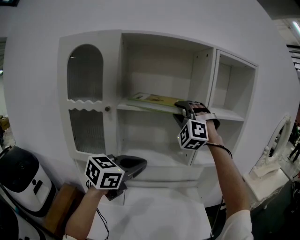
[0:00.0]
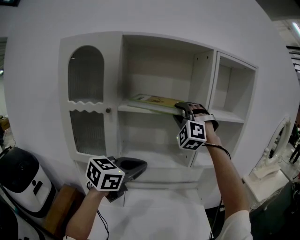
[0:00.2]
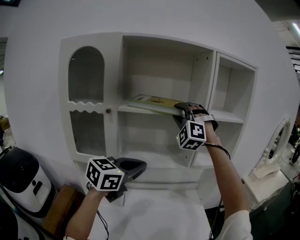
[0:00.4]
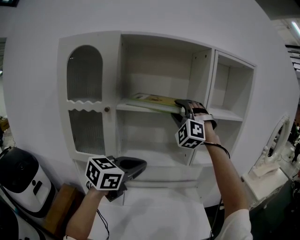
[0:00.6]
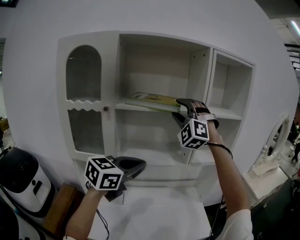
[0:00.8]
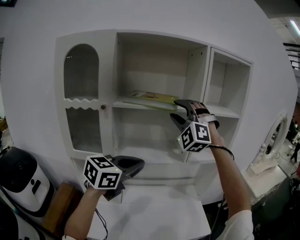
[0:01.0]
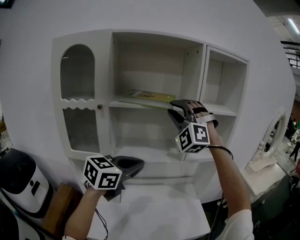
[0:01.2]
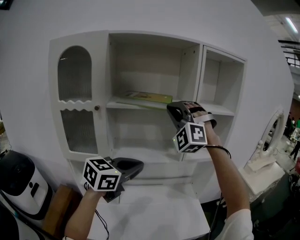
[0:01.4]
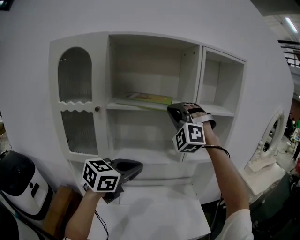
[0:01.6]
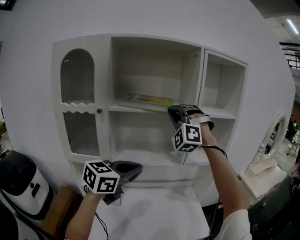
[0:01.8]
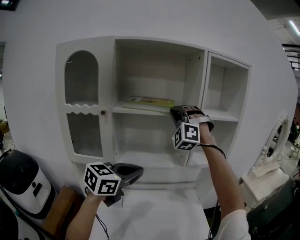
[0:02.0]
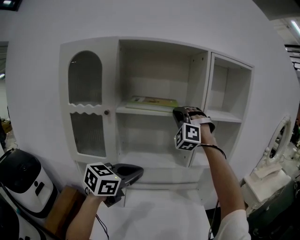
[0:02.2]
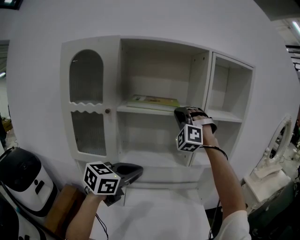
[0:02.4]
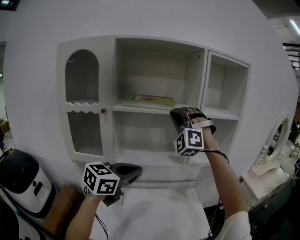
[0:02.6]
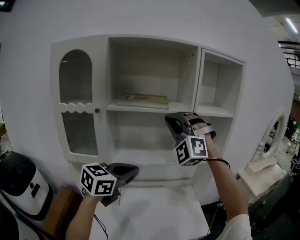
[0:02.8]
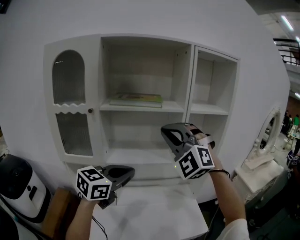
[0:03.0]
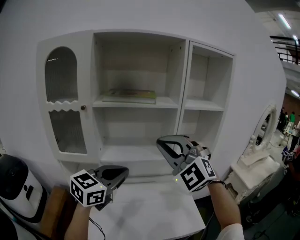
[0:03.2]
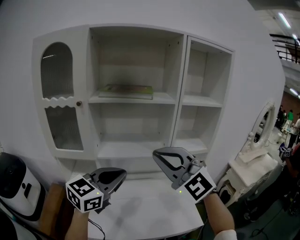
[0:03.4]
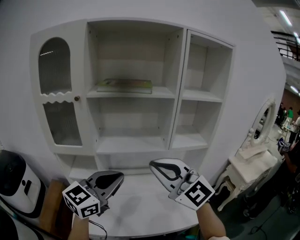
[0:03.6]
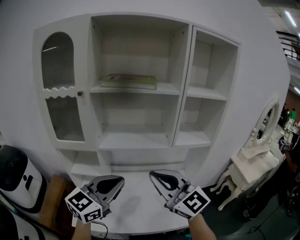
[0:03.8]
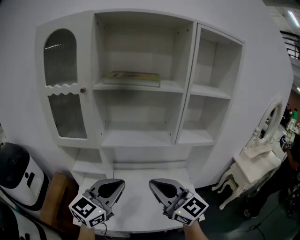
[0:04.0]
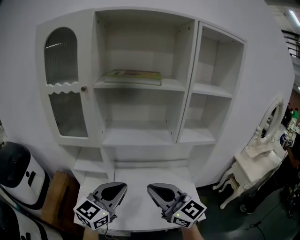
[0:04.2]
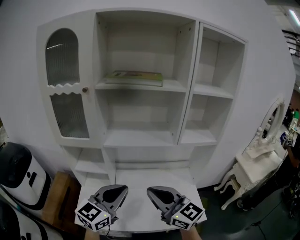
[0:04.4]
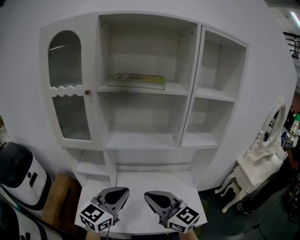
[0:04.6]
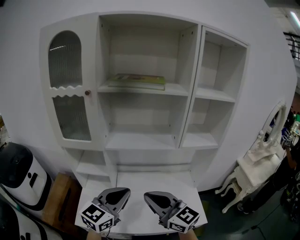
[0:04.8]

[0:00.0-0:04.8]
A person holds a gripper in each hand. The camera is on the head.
0:03.2 to 0:04.8: The left gripper goes about 10 cm downward.

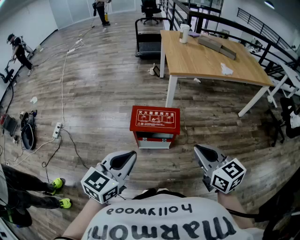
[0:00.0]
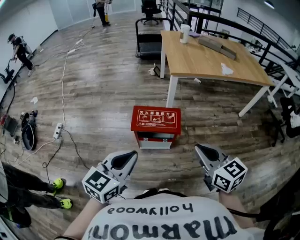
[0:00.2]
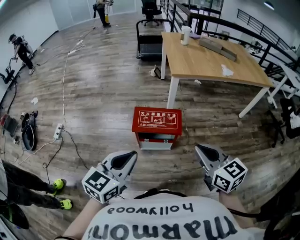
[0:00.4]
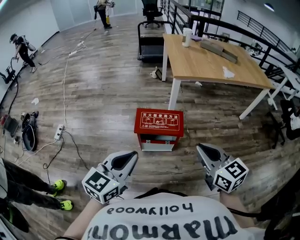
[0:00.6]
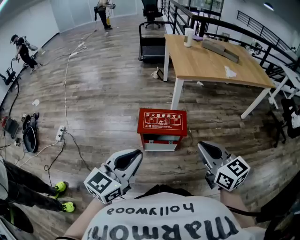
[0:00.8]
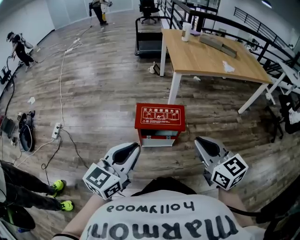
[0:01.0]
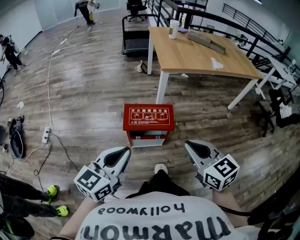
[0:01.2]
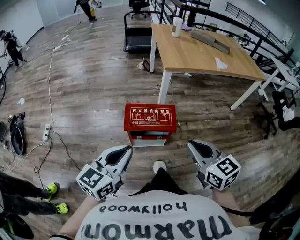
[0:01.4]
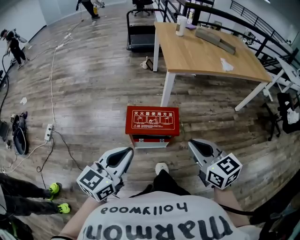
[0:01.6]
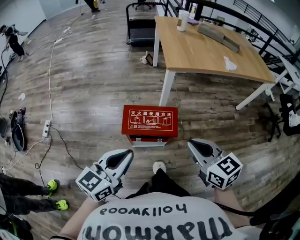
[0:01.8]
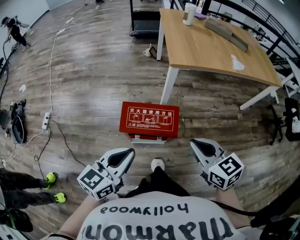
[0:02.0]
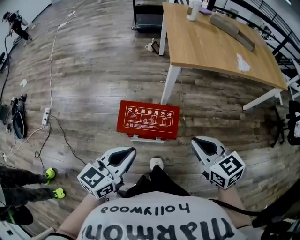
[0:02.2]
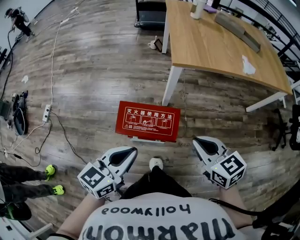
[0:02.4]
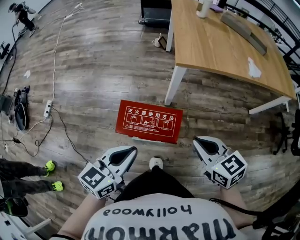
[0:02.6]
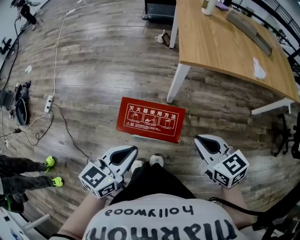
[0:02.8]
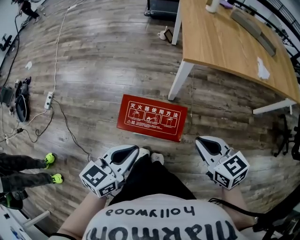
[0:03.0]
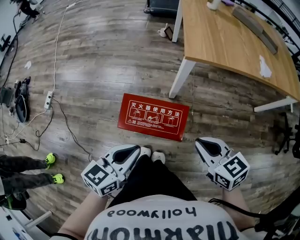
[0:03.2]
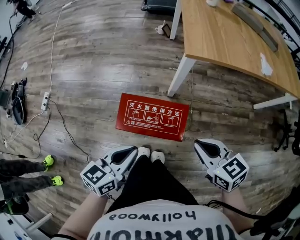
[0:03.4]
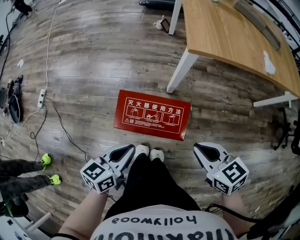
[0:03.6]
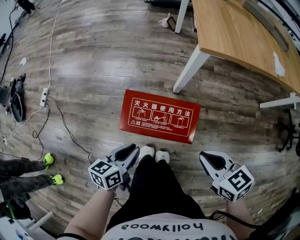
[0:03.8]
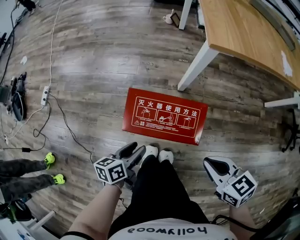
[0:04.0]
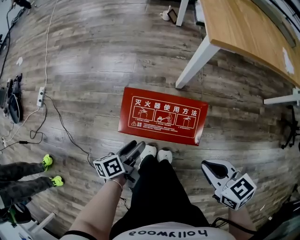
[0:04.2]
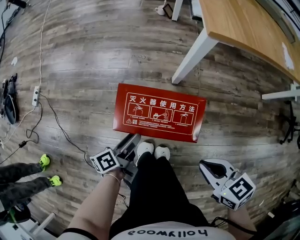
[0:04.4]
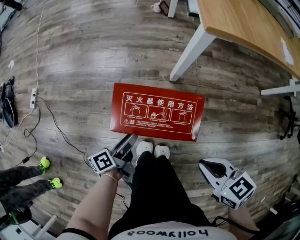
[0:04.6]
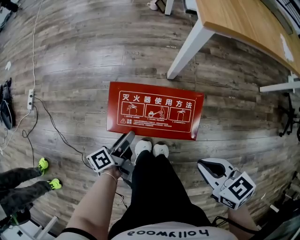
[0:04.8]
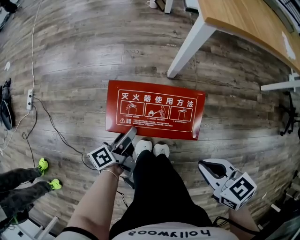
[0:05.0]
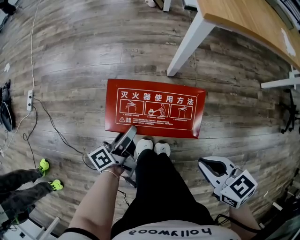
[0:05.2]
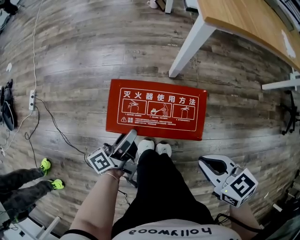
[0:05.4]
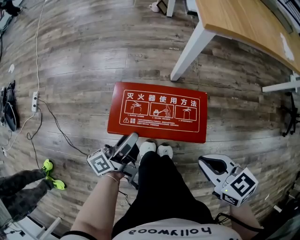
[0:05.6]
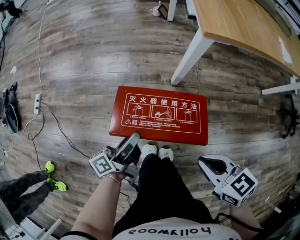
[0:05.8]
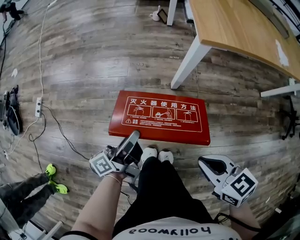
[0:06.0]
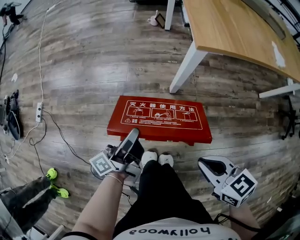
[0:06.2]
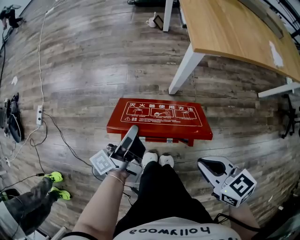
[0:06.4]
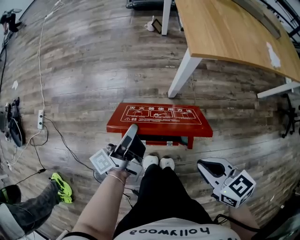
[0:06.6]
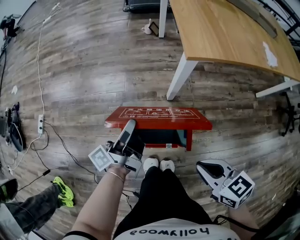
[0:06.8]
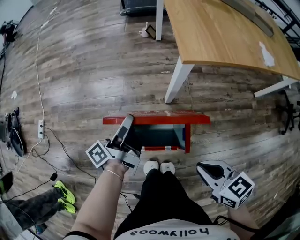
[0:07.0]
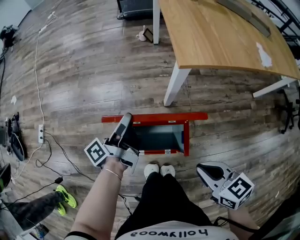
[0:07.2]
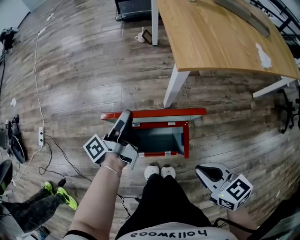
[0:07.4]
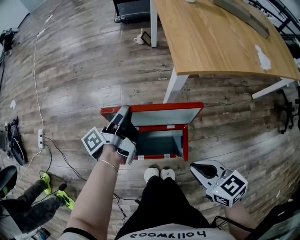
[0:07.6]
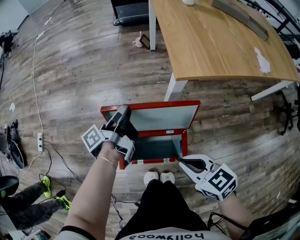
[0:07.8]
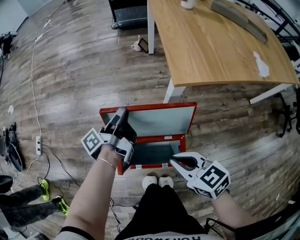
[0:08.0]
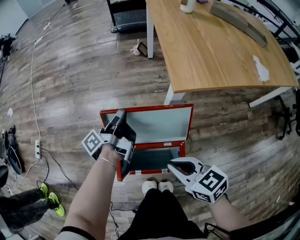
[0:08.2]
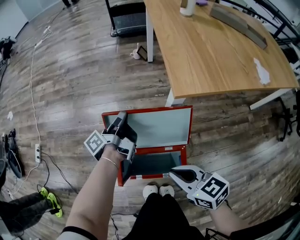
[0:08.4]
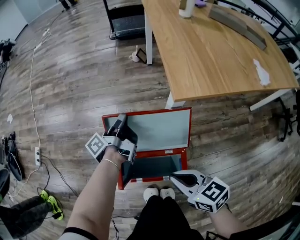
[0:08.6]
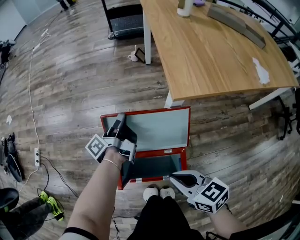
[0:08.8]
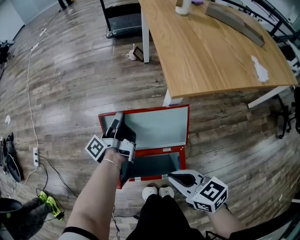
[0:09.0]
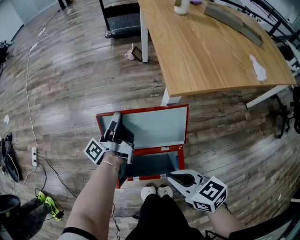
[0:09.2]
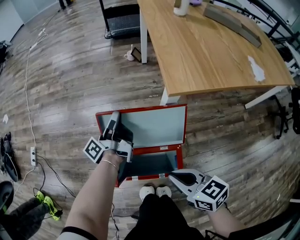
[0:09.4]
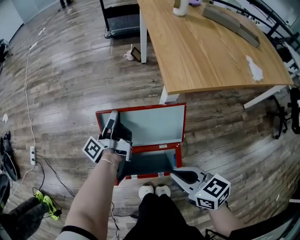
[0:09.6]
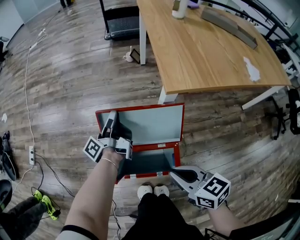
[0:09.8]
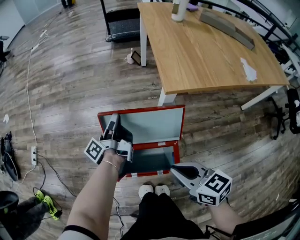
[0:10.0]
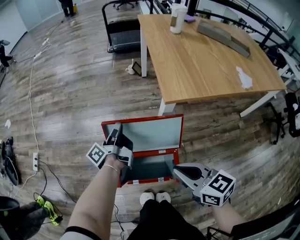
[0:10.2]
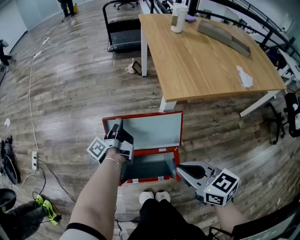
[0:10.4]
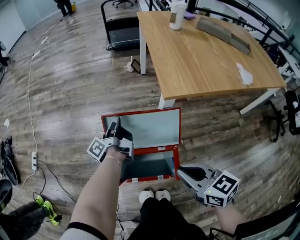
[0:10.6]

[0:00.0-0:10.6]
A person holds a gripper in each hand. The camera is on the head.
0:00.0 to 0:01.6: The two grippers go some 5 cm forward.
0:01.6 to 0:03.0: Both grippers travel together forward, downward and to the right, about 20 cm. The right gripper rotates some 20 degrees.
0:03.0 to 0:04.6: The left gripper is displaced downward by some 30 cm, rolls counterclockwise, seen from behind, by roughly 70 degrees, and opens up. The right gripper goes roughly 15 cm downward.
0:04.6 to 0:06.0: The left gripper travels upward by about 10 cm, rotates approximately 30 degrees, and closes.
0:06.0 to 0:07.6: The left gripper travels forward by roughly 20 cm. The right gripper goes roughly 5 cm forward.
0:07.6 to 0:09.0: Both grippers travel together forward, roughly 10 cm. The left gripper closes up.
0:09.0 to 0:10.6: The right gripper goes some 5 cm upward.

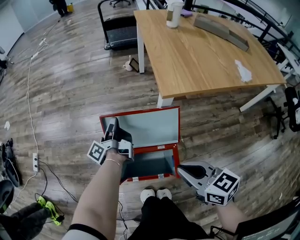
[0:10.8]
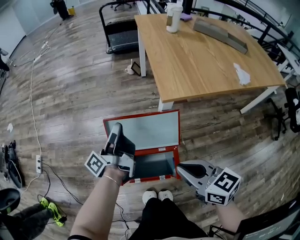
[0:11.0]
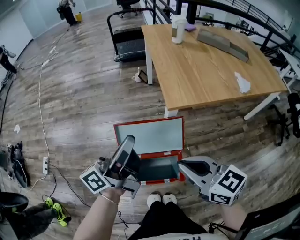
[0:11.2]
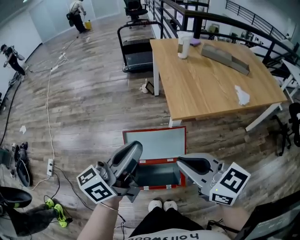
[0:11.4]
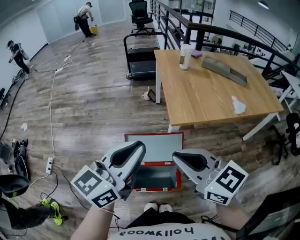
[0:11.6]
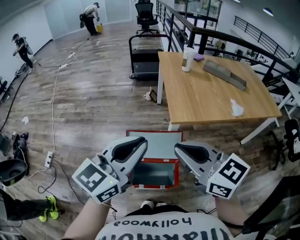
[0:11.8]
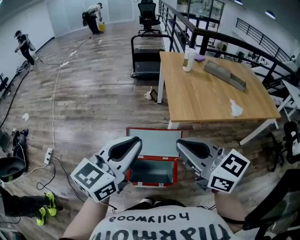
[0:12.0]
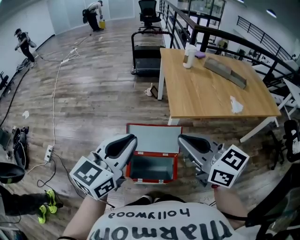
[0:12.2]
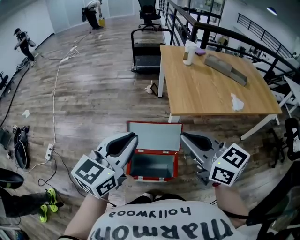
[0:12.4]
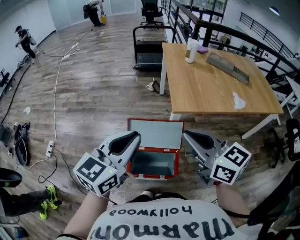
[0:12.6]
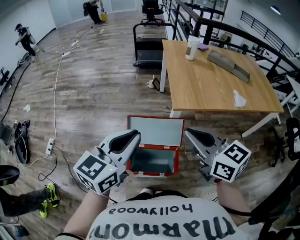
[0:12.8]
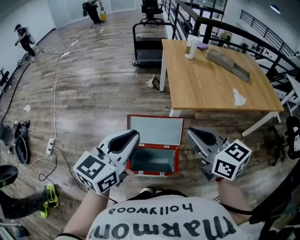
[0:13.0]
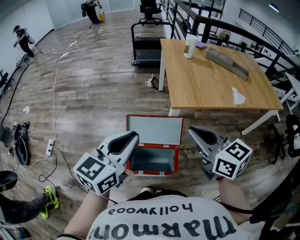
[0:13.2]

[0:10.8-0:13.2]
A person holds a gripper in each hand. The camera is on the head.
0:10.8 to 0:12.0: The left gripper moves upward and backward, approximately 40 cm, and rotates around the line of its fingers by some 80 degrees, clockwise from behind. The right gripper moves upward, about 30 cm, and changes its angle by roughly 30 degrees.
0:12.0 to 0:13.2: The right gripper moves to the right, roughly 5 cm.

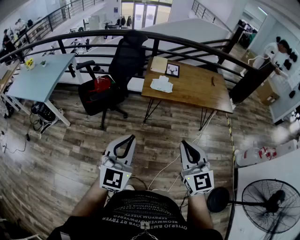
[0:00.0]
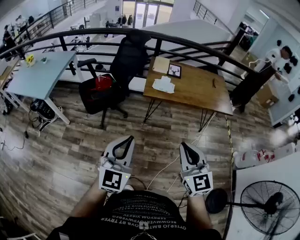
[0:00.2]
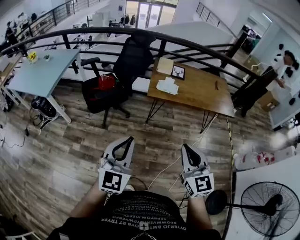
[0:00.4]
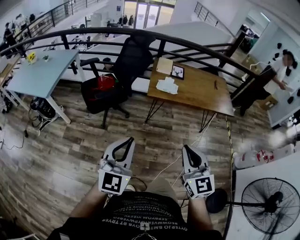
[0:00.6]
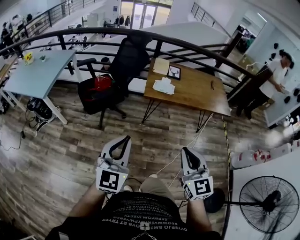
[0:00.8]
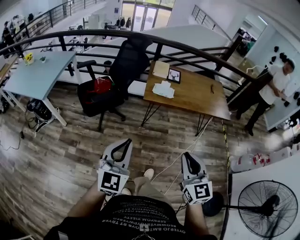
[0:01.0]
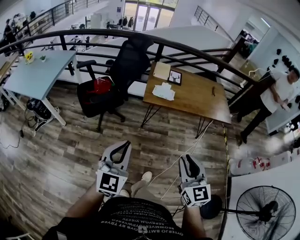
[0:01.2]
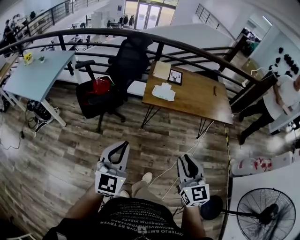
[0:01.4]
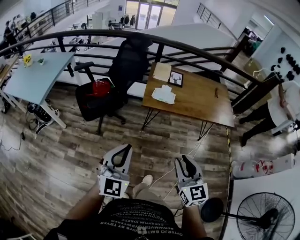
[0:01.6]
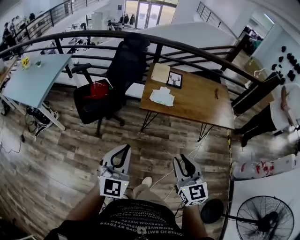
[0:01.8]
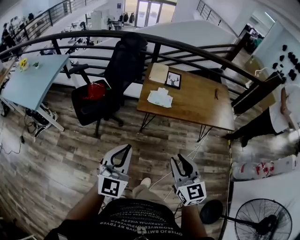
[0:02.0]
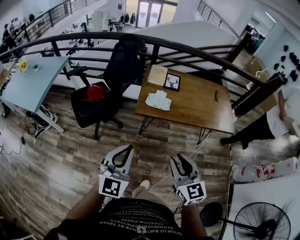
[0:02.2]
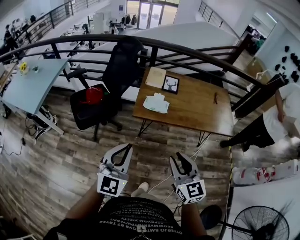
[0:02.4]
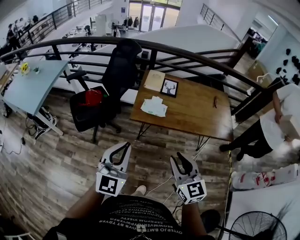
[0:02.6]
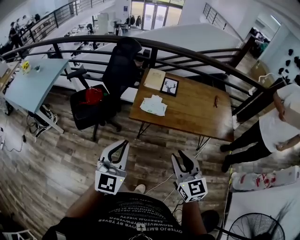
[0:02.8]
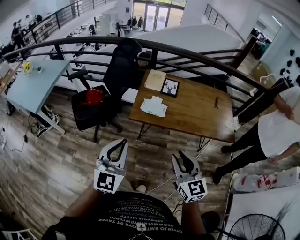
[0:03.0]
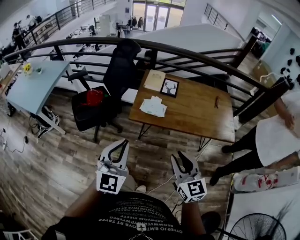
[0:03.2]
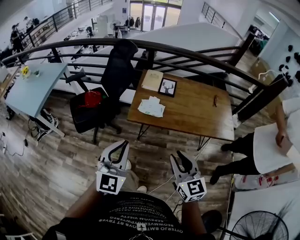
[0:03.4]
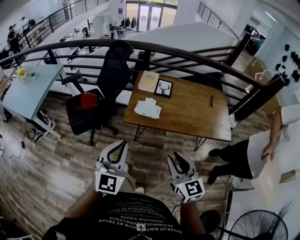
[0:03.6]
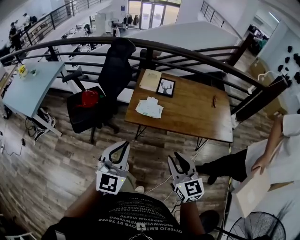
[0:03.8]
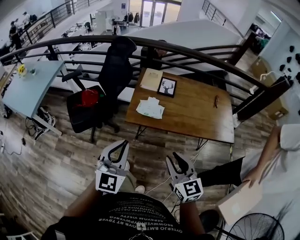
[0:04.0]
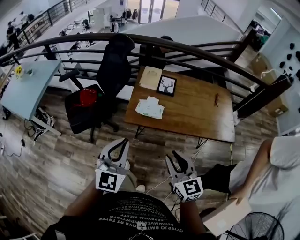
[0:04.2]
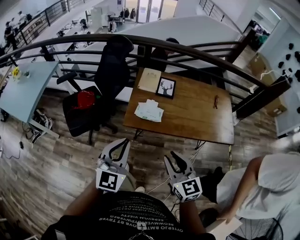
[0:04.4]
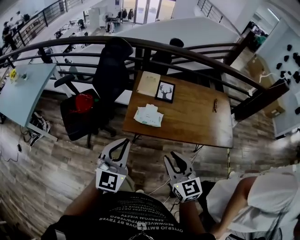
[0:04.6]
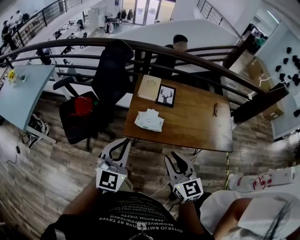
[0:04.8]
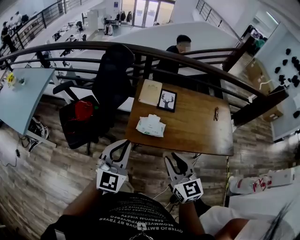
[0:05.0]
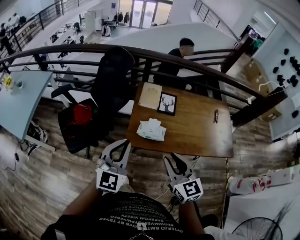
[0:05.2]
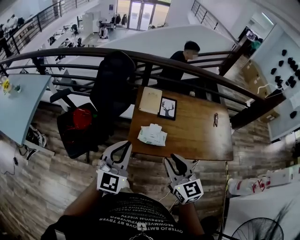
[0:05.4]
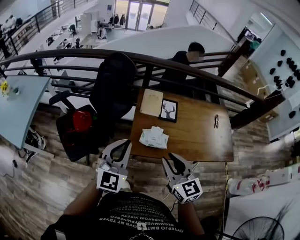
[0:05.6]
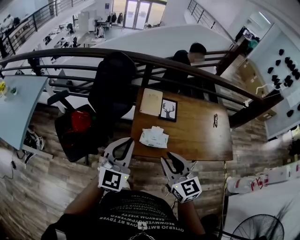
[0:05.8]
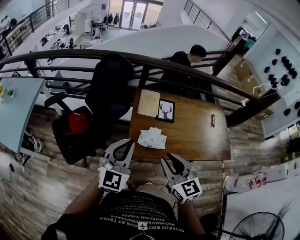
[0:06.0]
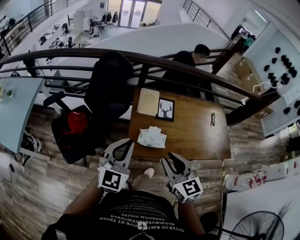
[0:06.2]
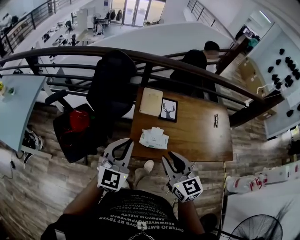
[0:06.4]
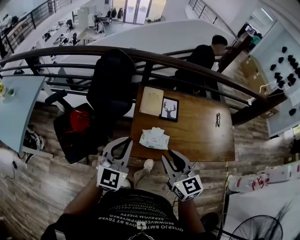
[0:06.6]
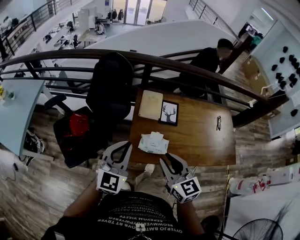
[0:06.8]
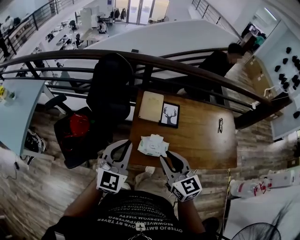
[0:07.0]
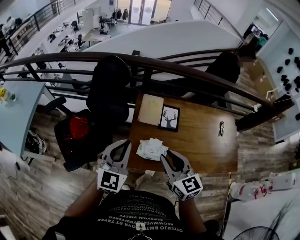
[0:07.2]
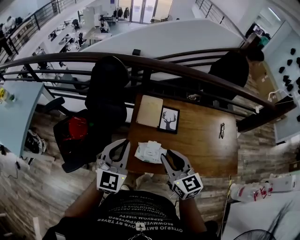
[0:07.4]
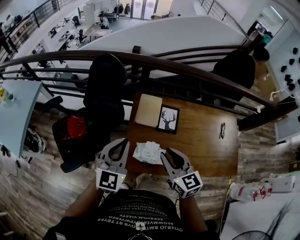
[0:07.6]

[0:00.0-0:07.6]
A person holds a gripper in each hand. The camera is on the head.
0:00.0 to 0:01.6: The left gripper travels forward by about 10 cm, while the right gripper moves forward and downward, about 10 cm, and opens.
0:01.6 to 0:03.0: The two grippers go approximately 20 cm forward and to the right.
0:03.0 to 0:04.6: Both grippers travel together forward, approximately 15 cm.
0:04.6 to 0:06.0: The two grippers go approximately 20 cm forward and to the left.
0:06.0 to 0:07.6: The left gripper heads forward, covering about 15 cm; the right gripper shifts roughly 20 cm forward and to the right.
